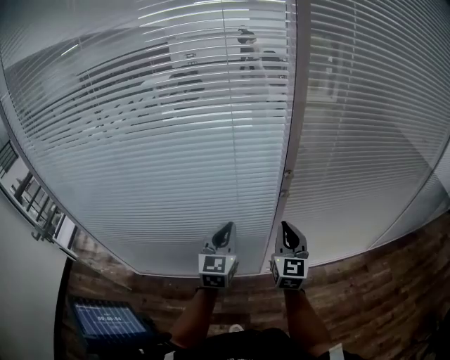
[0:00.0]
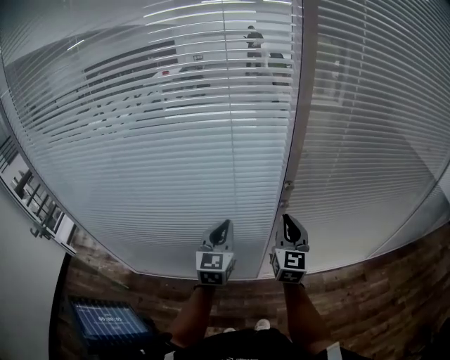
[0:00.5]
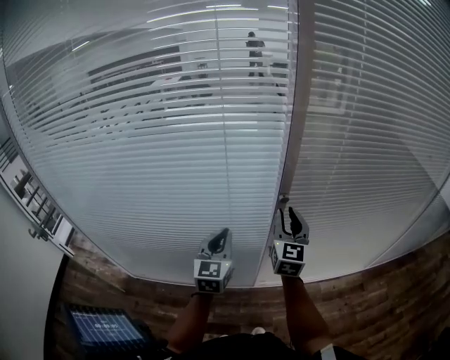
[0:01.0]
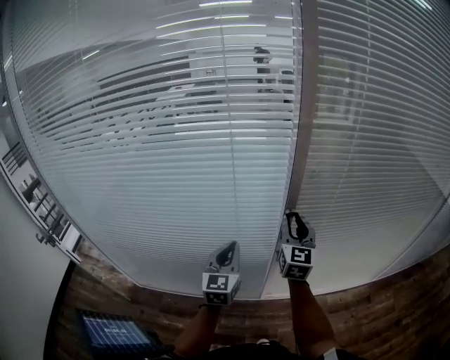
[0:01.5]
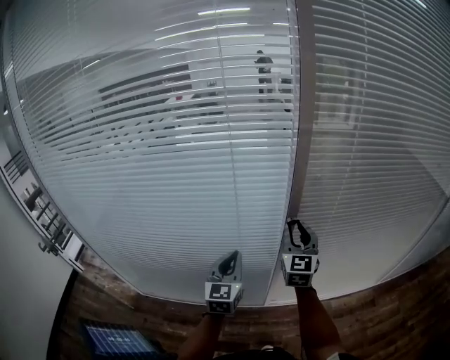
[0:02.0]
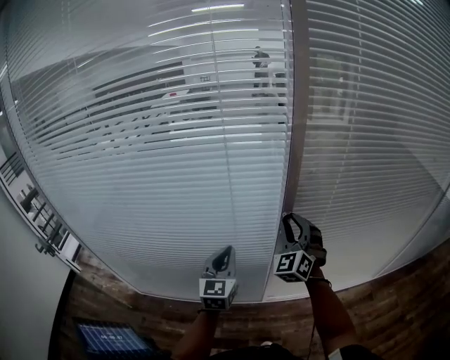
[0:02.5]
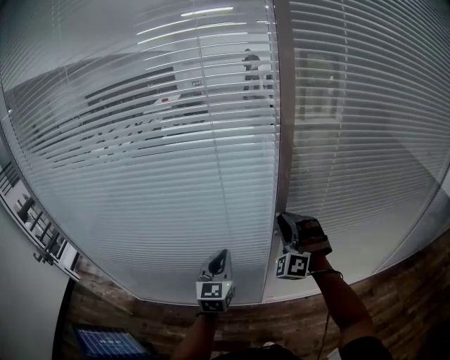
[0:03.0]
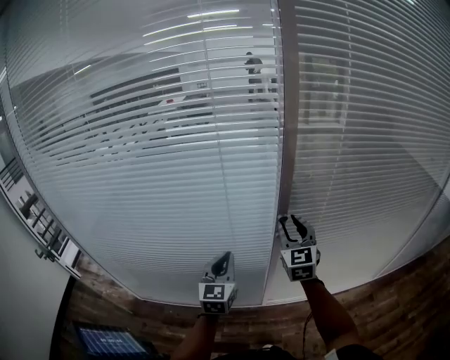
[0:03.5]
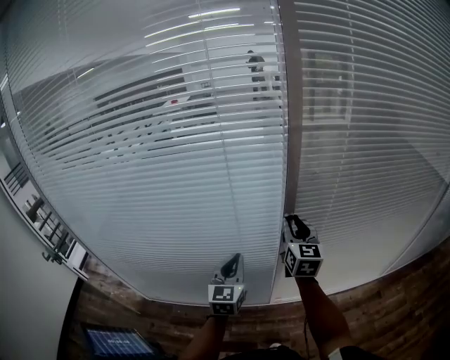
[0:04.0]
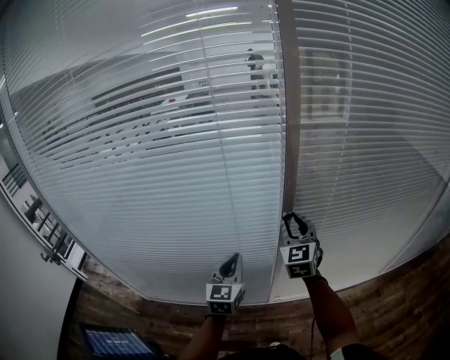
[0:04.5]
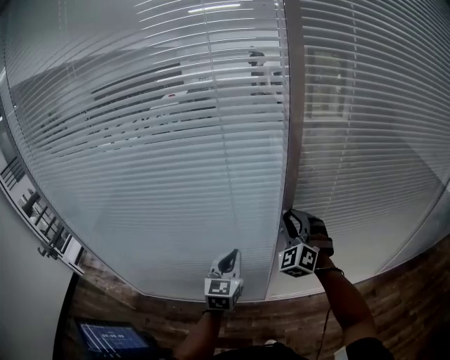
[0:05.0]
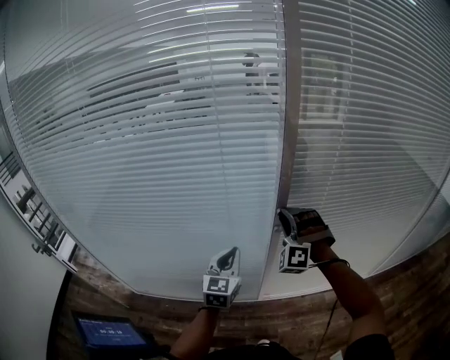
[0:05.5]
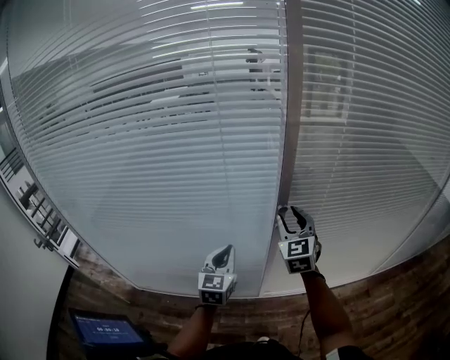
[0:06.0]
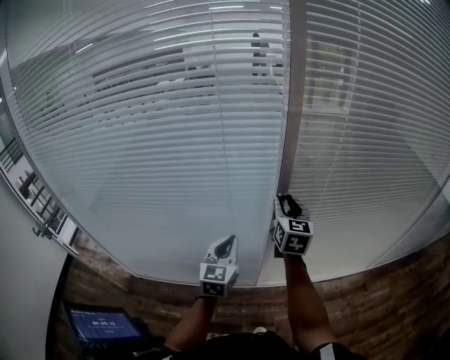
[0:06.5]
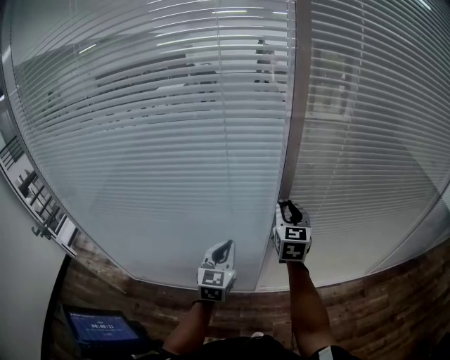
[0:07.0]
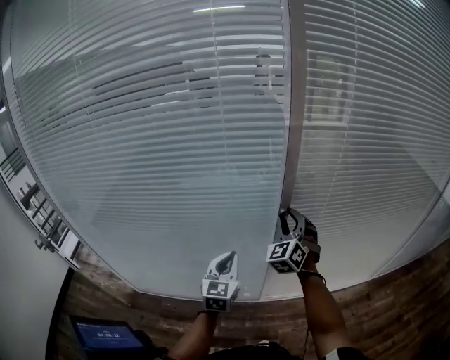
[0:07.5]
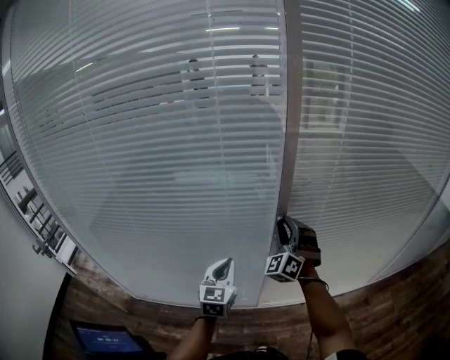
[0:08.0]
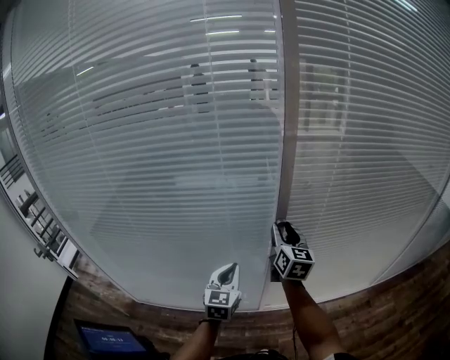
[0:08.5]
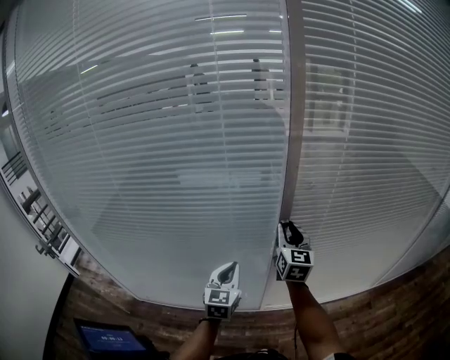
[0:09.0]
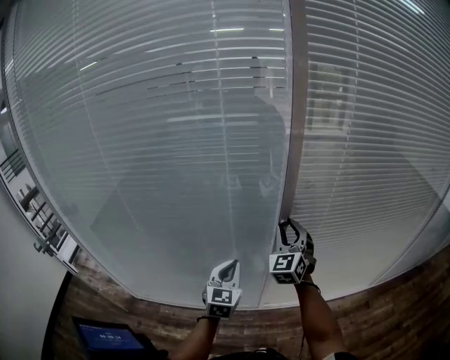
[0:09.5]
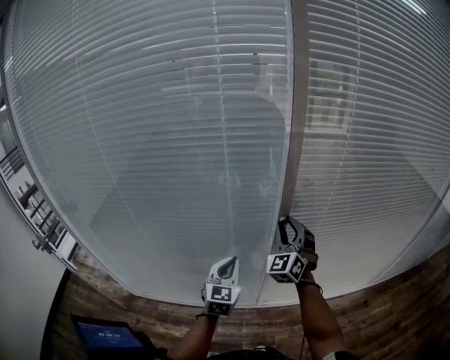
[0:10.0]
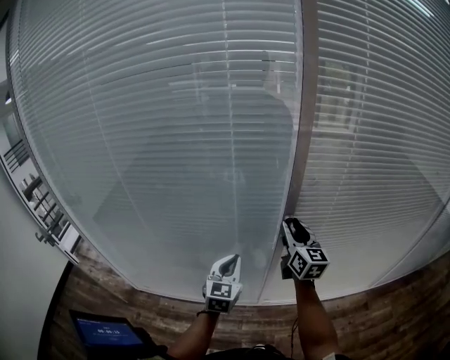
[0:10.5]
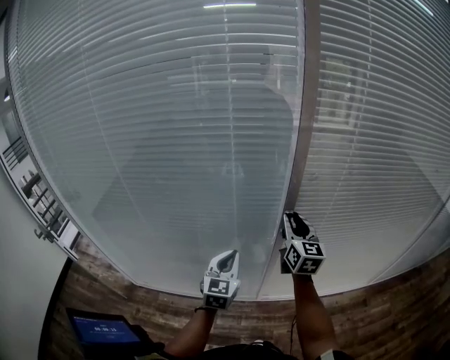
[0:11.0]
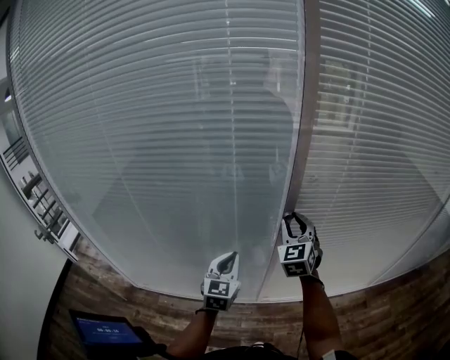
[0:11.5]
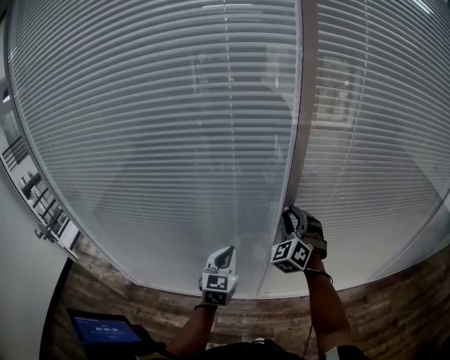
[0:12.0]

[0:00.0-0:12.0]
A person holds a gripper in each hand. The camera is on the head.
0:00.0 to 0:02.0: The right gripper travels forward by roughly 15 cm, and opens; the left gripper ends up roughly 5 cm from where it was.
0:04.0 to 0:06.0: The right gripper changes its angle by about 30 degrees.
0:06.0 to 0:08.0: The right gripper rolls counterclockwise, seen from behind, by some 40 degrees.

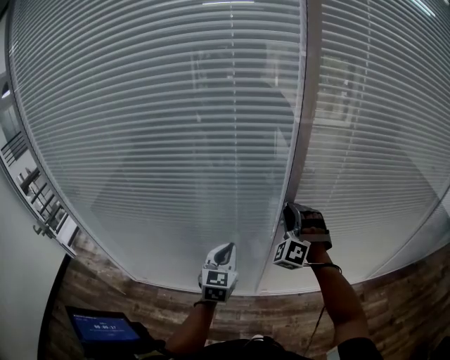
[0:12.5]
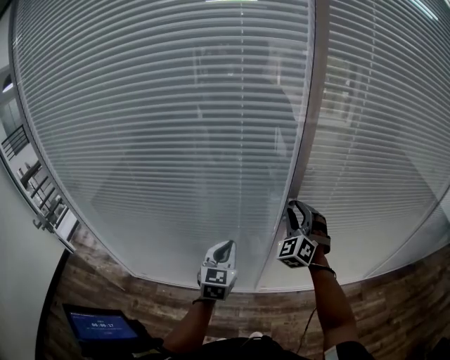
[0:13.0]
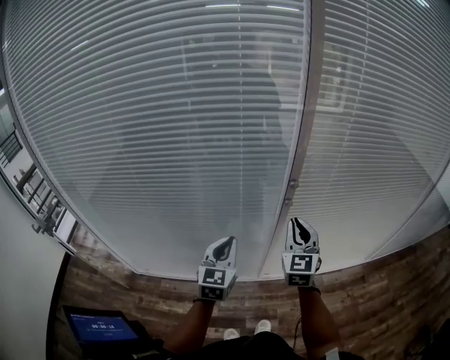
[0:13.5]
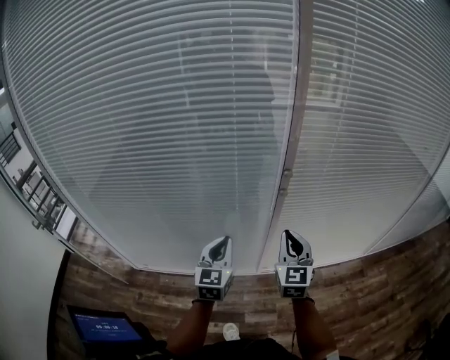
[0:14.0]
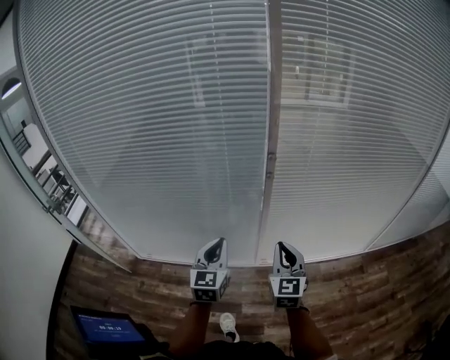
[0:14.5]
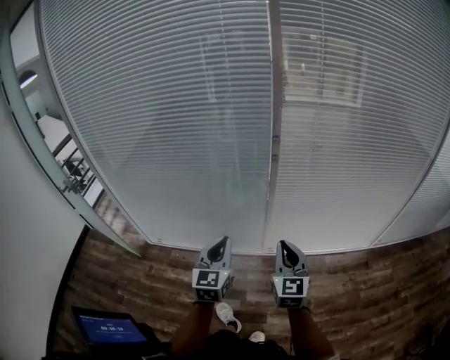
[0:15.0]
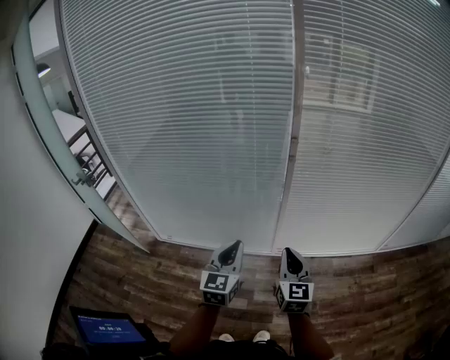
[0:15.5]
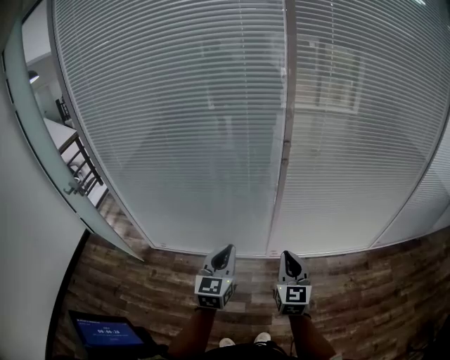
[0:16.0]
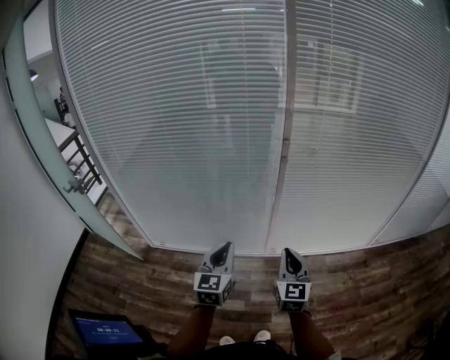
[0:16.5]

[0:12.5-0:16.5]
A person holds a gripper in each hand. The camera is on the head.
0:12.5 to 0:14.5: The left gripper heads backward, covering approximately 20 cm, while the right gripper shifts roughly 30 cm backward, rotates around the line of its fingers by about 70 degrees, clockwise from behind, and closes.
0:14.5 to 0:16.5: Both grippers move backward, roughly 15 cm.

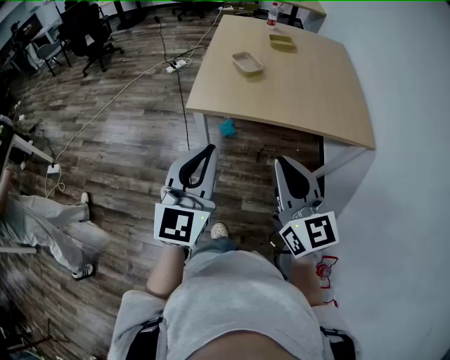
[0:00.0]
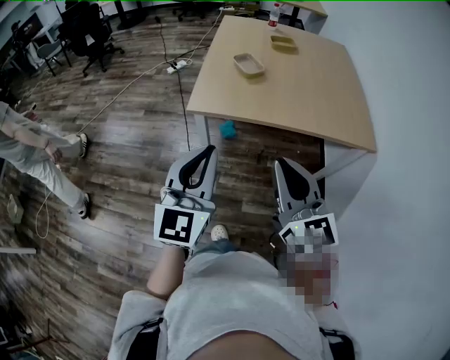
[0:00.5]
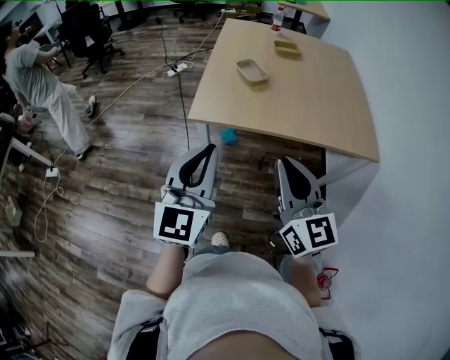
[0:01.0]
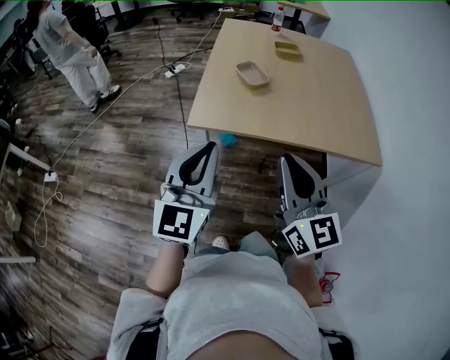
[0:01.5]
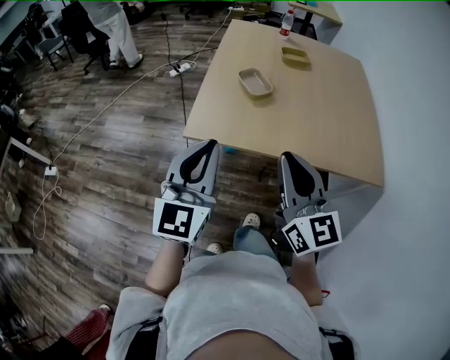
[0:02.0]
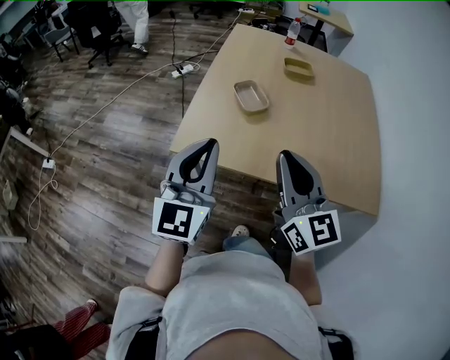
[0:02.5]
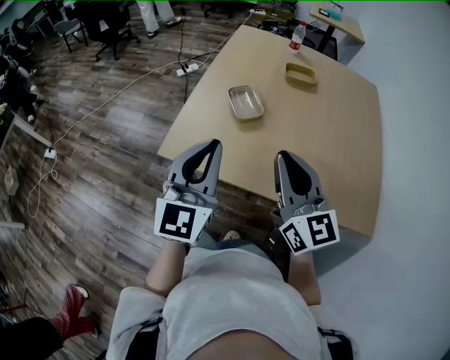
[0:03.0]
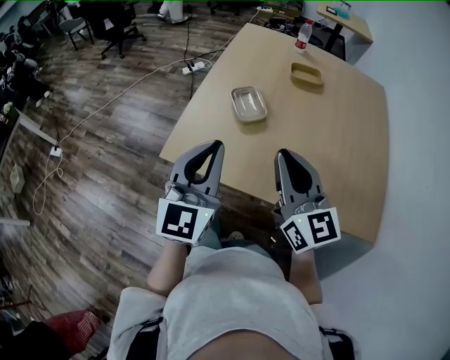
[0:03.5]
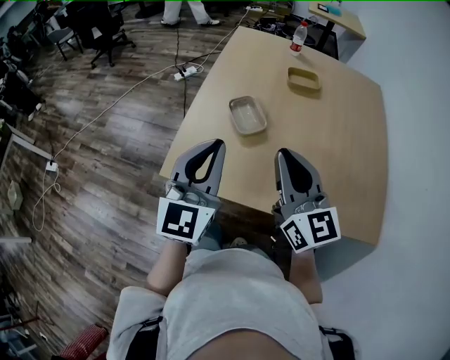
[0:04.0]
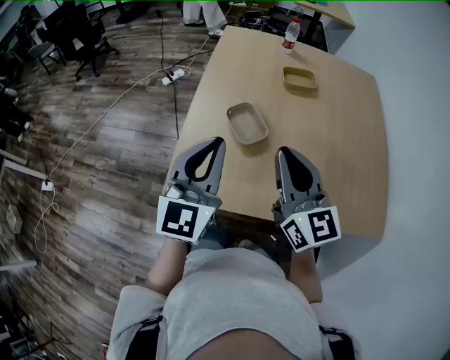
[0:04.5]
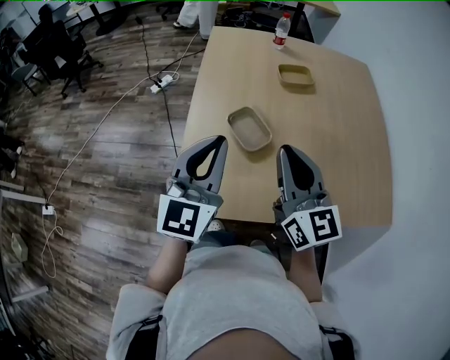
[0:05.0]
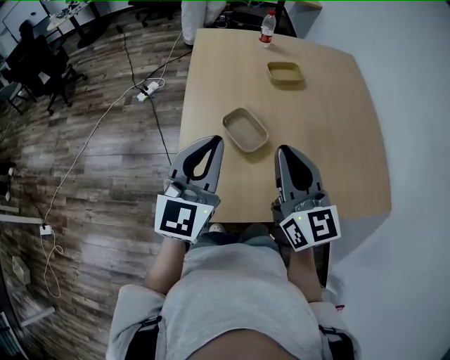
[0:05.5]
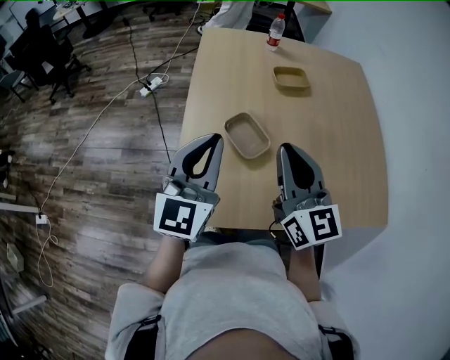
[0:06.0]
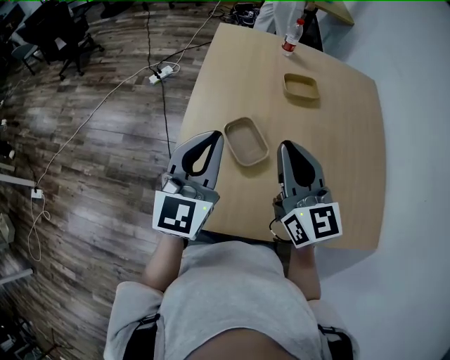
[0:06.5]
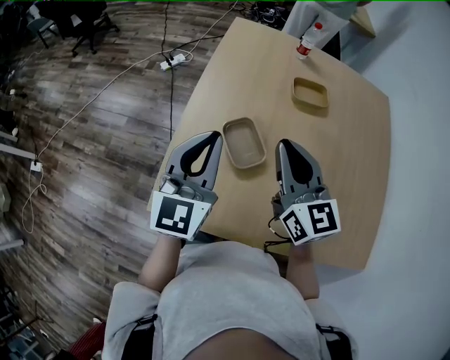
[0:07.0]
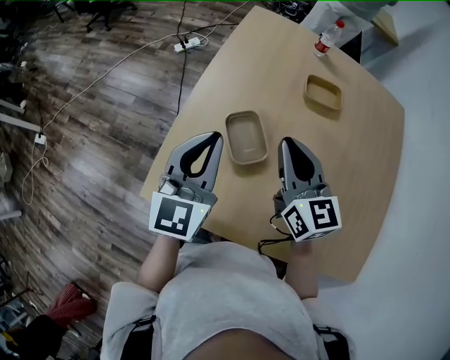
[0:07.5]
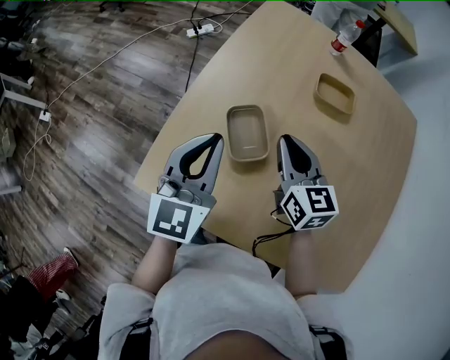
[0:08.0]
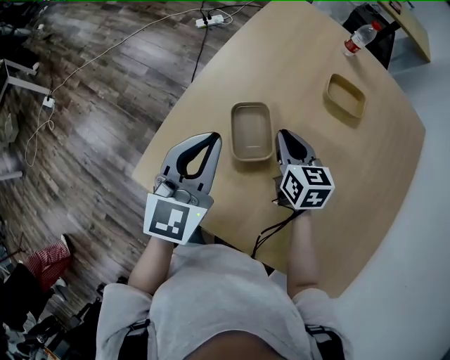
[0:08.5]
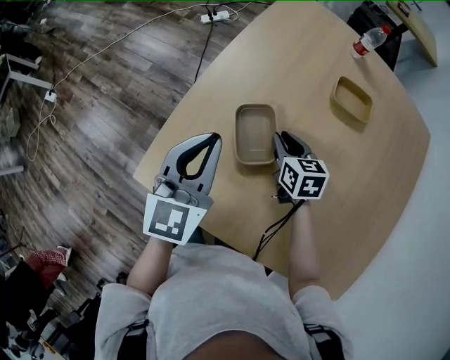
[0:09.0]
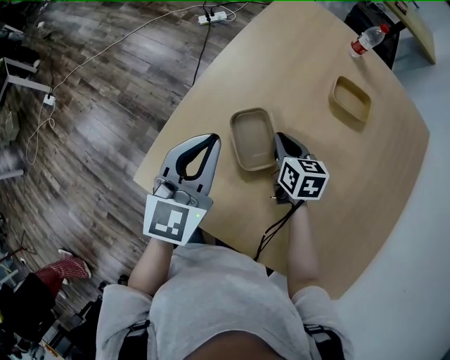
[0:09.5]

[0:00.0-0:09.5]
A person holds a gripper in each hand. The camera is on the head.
0:00.0 to 0:02.0: The grippers both shift forward by roughly 15 cm.
0:02.0 to 0:04.0: Both grippers travel together forward and to the right, approximately 20 cm.
0:04.0 to 0:05.5: Both grippers travel together forward and to the left, about 10 cm.
0:05.5 to 0:07.5: The left gripper travels forward by approximately 5 cm, and turns by about 20 degrees; the right gripper is displaced forward and downward by approximately 15 cm, and turns by some 20 degrees.
0:07.5 to 0:09.5: The right gripper moves downward, some 20 cm, and swivels roughly 30 degrees. Meanwhile the left gripper moves downward, roughly 5 cm.

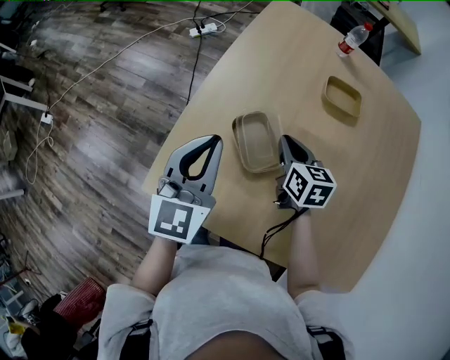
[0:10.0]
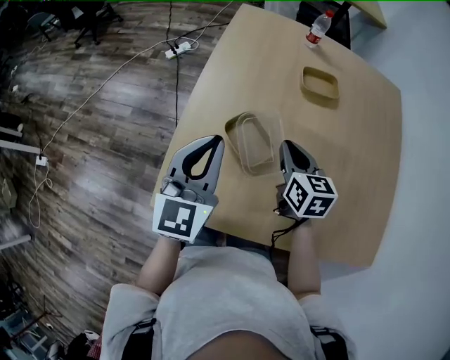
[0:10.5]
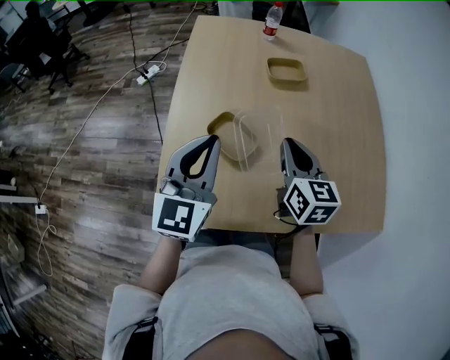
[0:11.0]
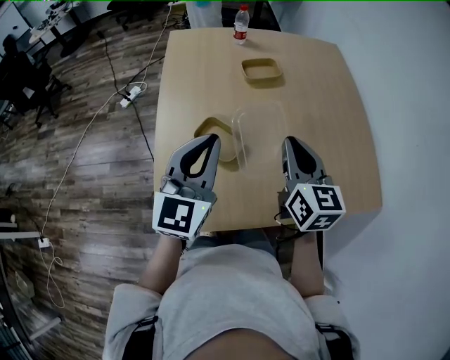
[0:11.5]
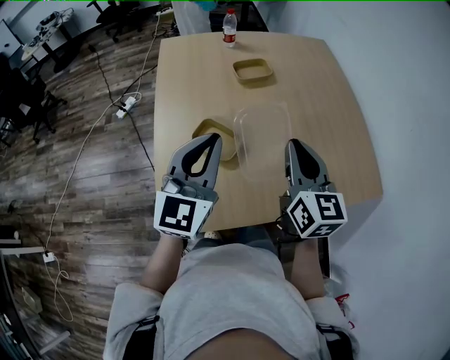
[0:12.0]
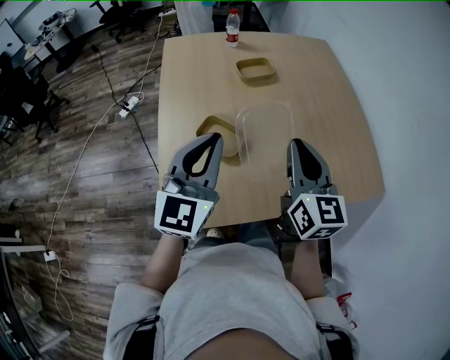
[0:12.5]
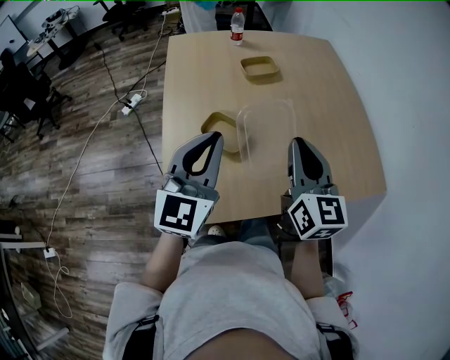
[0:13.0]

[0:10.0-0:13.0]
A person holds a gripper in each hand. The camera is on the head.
0:10.0 to 0:11.5: The left gripper changes place by roughly 10 cm, and turns by about 30 degrees, while the right gripper travels upward by roughly 15 cm, and changes its angle by some 40 degrees.
0:11.5 to 0:13.0: The right gripper heads backward, covering roughly 5 cm.
